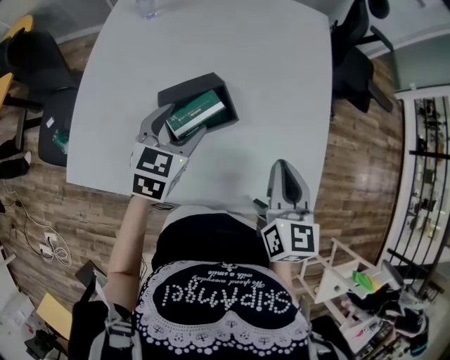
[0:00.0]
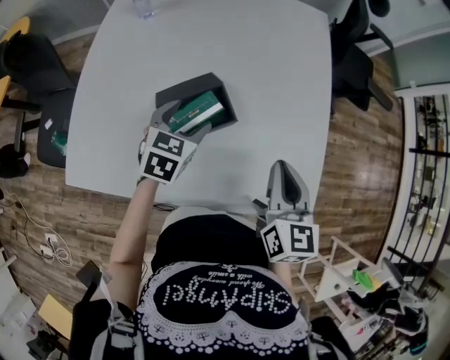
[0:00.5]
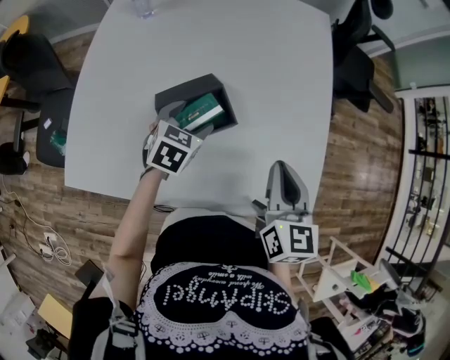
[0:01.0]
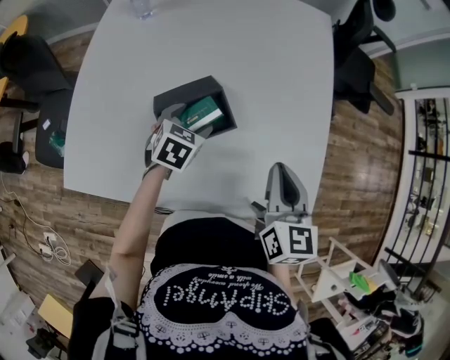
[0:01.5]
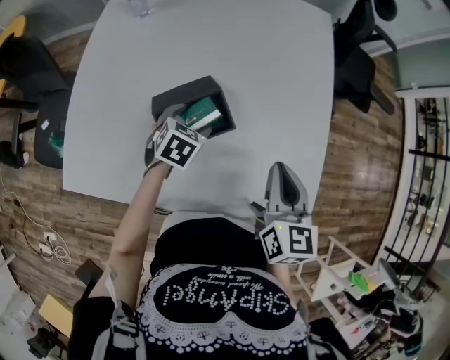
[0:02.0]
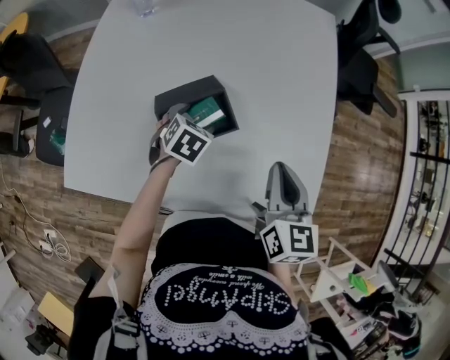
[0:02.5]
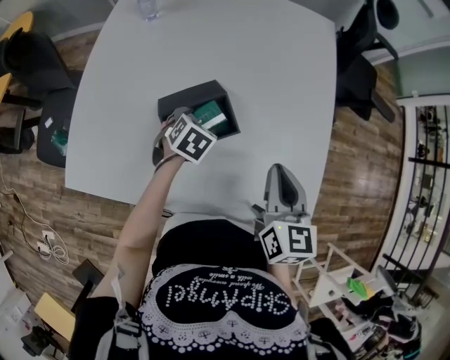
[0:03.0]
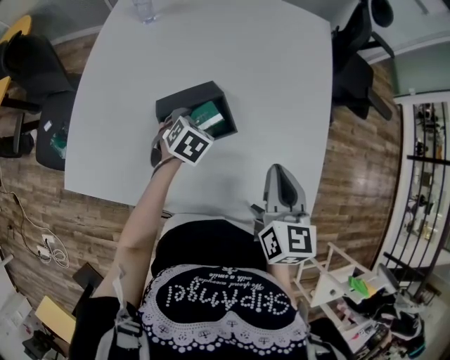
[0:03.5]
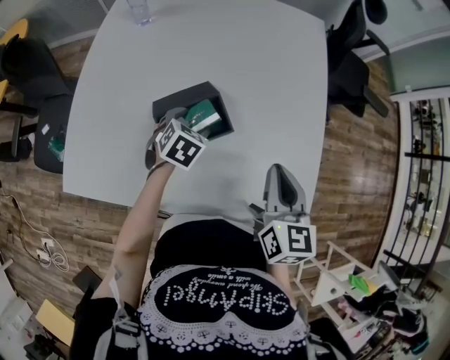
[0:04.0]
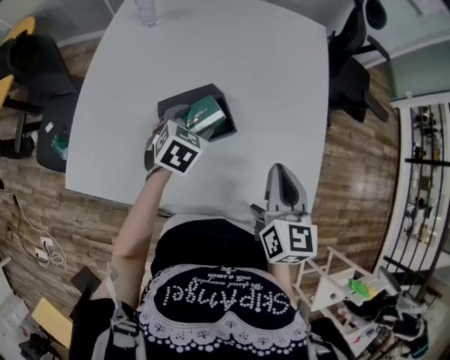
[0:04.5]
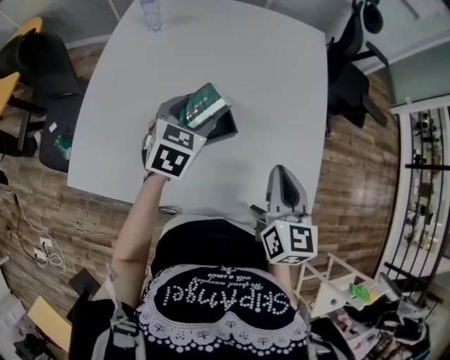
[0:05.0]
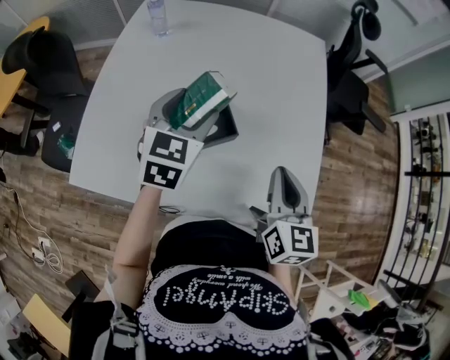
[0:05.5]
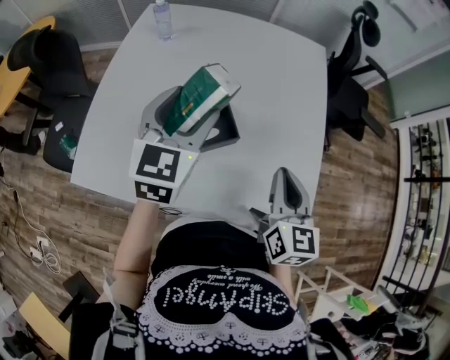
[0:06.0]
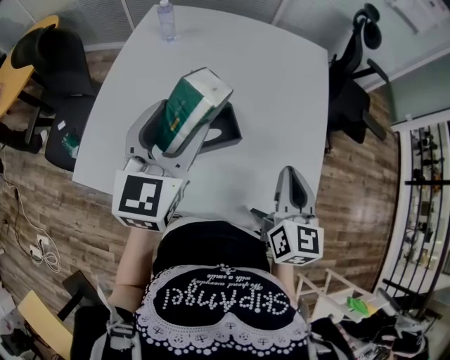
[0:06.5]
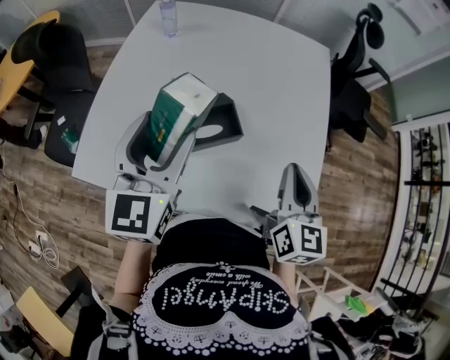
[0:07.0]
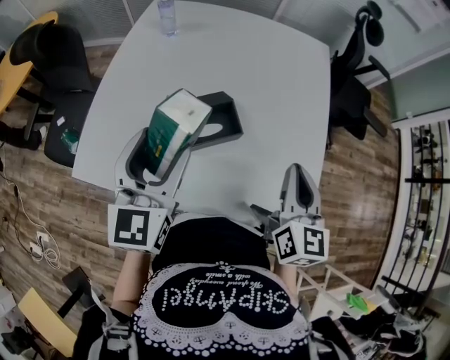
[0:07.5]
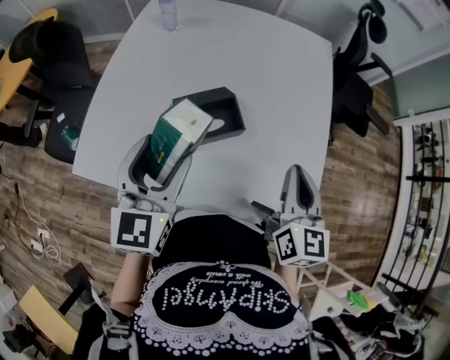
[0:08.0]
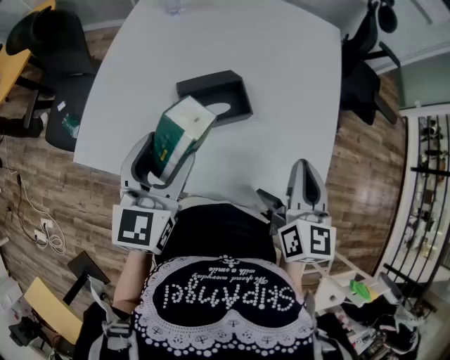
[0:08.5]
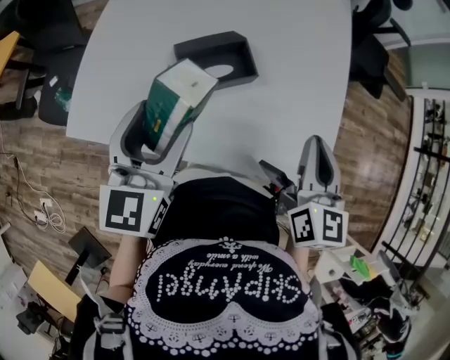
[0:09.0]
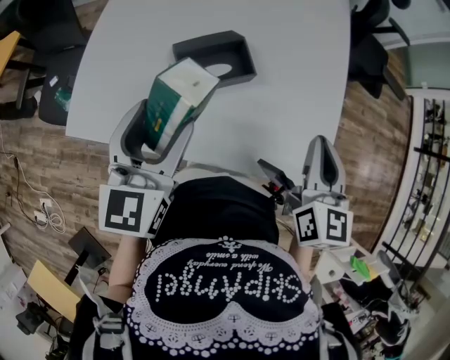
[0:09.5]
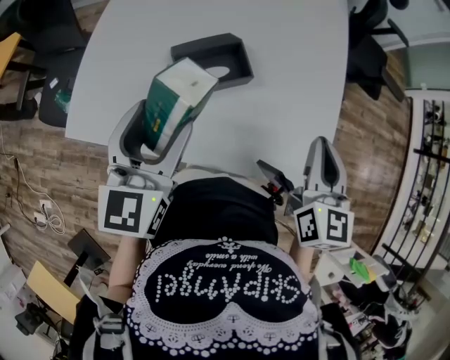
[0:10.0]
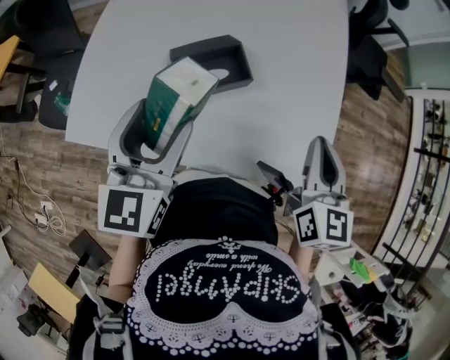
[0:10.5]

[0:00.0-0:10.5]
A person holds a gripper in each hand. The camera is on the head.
0.0 to 2.0 s: The left gripper moves downward, approximately 15 cm, and turns by some 20 degrees.
2.0 to 4.0 s: The grippers stay close to where they were, moving slightly.
4.0 to 6.5 s: The left gripper is displaced upward by about 30 cm, and angles its fingers upward, by roughly 50 degrees.
6.5 to 8.5 s: The left gripper is displaced backward and downward by roughly 10 cm.
8.5 to 10.5 s: There are only small adjustments of the grippers.

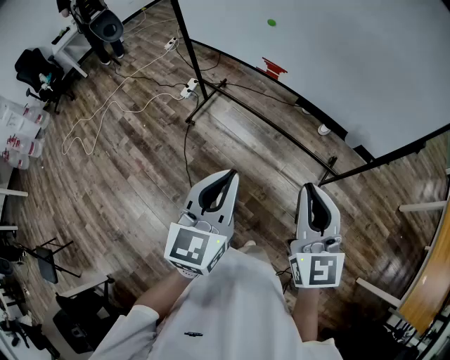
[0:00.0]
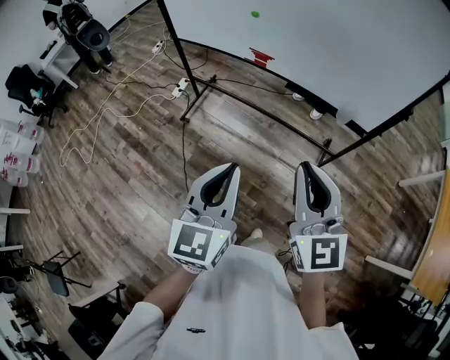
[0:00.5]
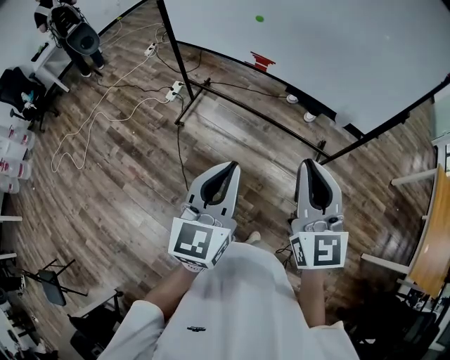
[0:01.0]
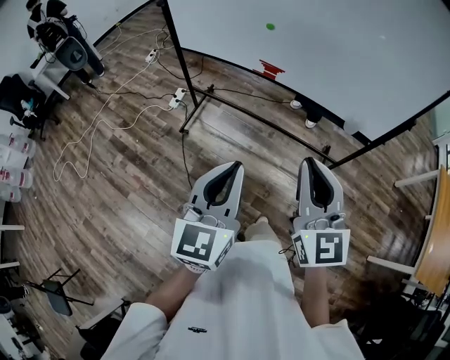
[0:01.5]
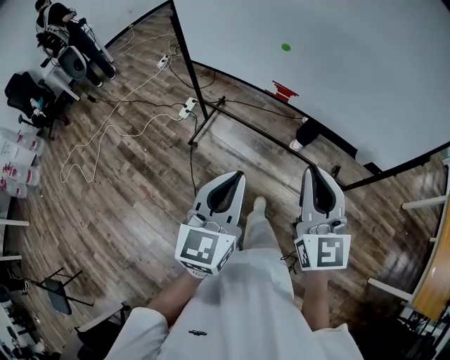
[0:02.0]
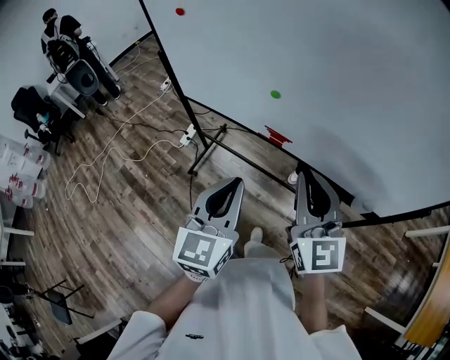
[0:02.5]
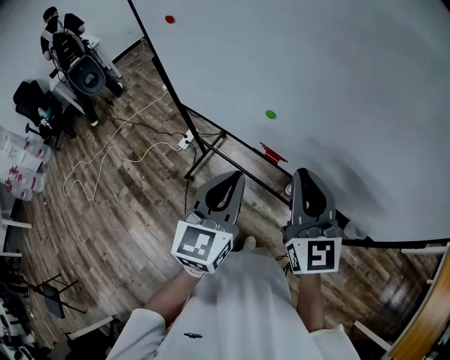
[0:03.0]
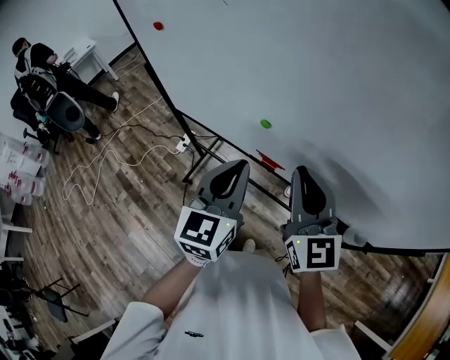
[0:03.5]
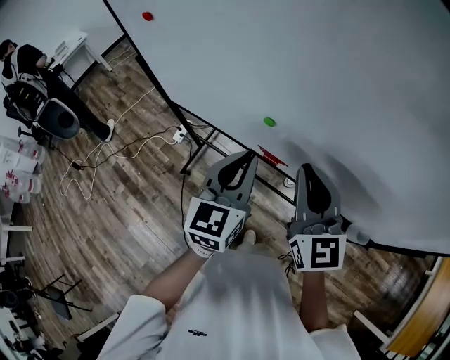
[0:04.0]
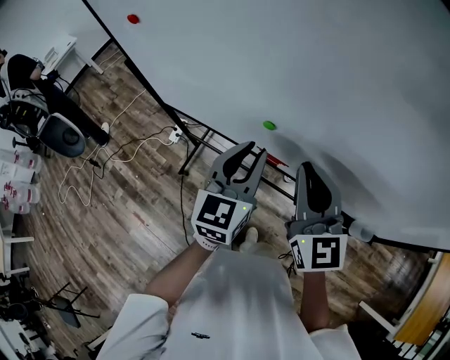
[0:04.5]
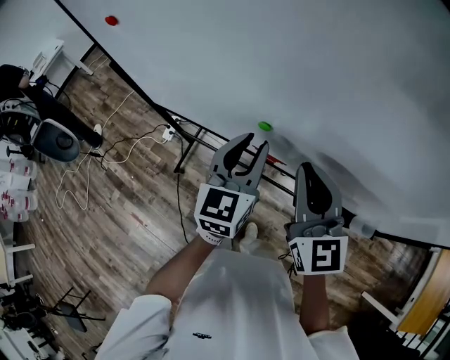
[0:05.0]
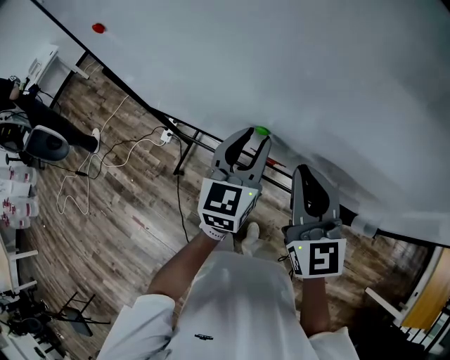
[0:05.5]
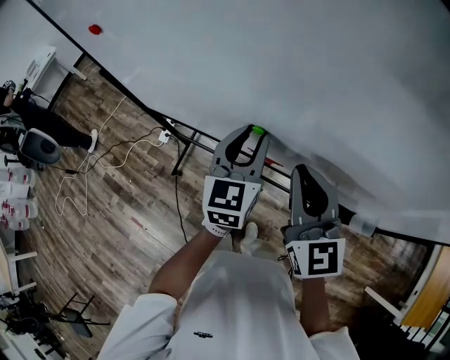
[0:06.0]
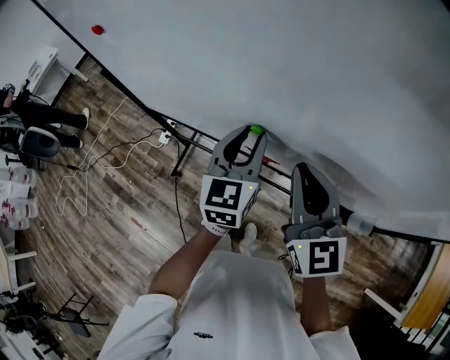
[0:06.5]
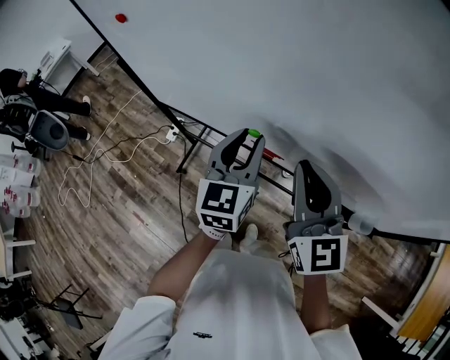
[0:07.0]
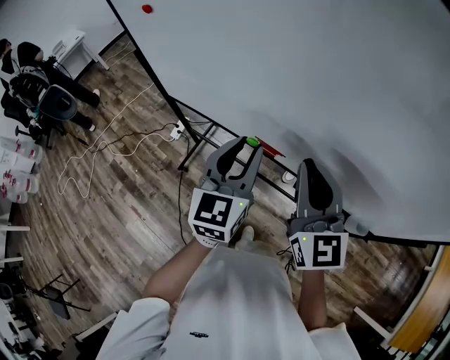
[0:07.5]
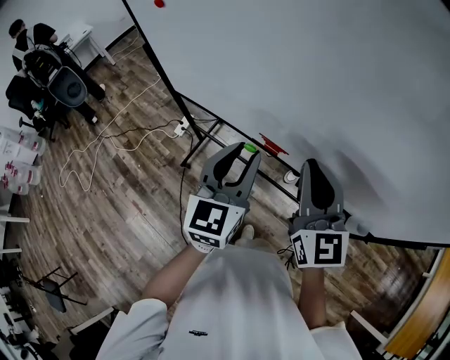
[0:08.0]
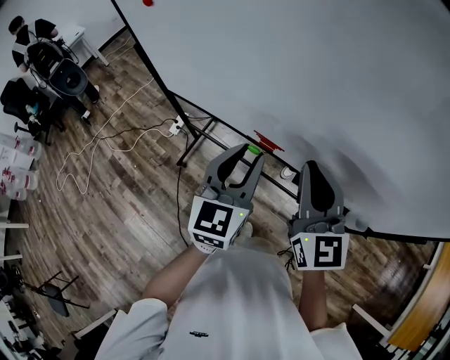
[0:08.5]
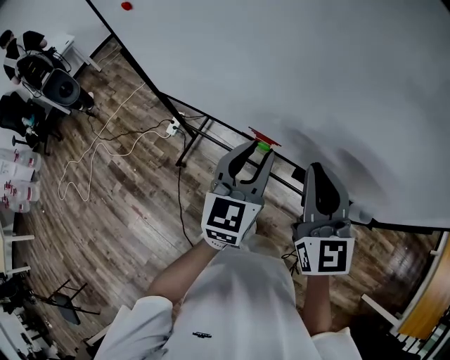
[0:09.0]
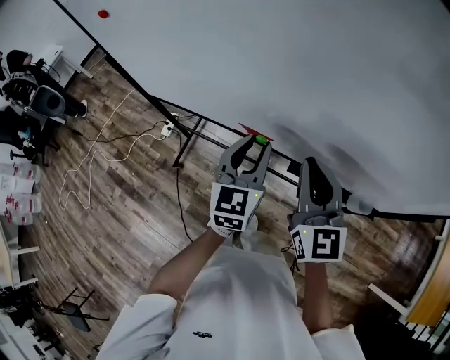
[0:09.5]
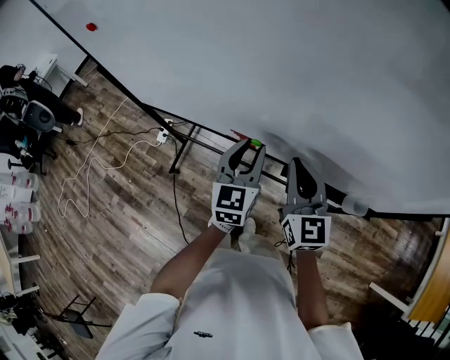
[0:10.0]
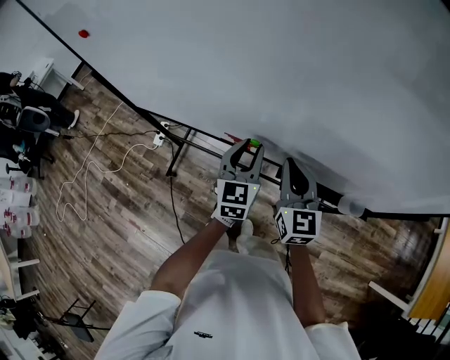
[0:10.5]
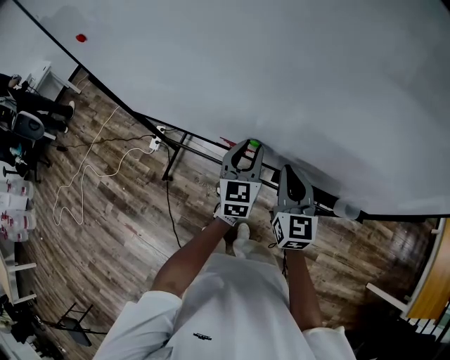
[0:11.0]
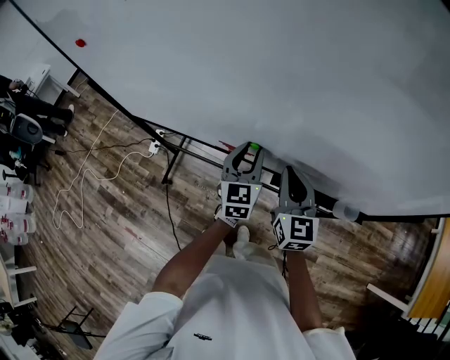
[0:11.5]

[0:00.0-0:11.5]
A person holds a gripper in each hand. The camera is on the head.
0.0 to 2.0 s: Both grippers move forward and to the left, about 15 cm.
2.0 to 4.0 s: The grippers both shift forward by some 30 cm.
4.0 to 6.0 s: The left gripper heads forward, covering some 10 cm, and opens its fingers.
6.0 to 7.5 s: The left gripper moves backward, roughly 10 cm, while the right gripper travels backward by roughly 5 cm.
7.5 to 9.5 s: The two grippers go about 10 cm downward and to the right.
9.5 to 11.5 s: The right gripper goes approximately 10 cm downward, while the left gripper goes some 10 cm downward and forward.

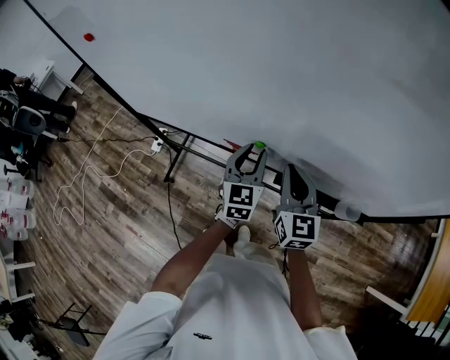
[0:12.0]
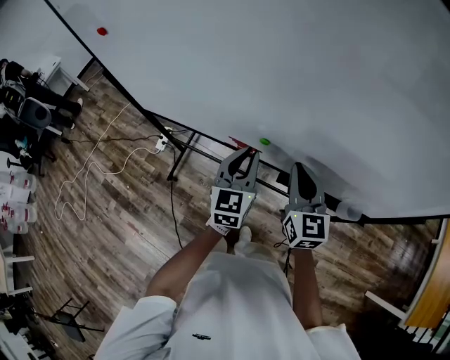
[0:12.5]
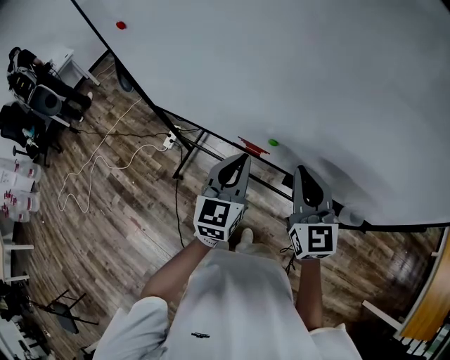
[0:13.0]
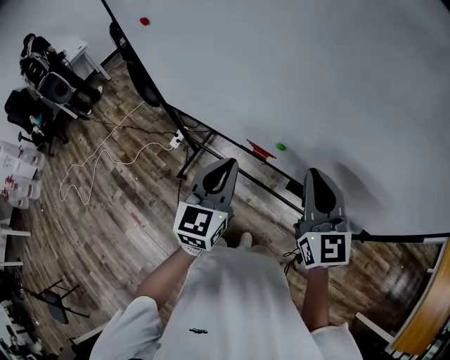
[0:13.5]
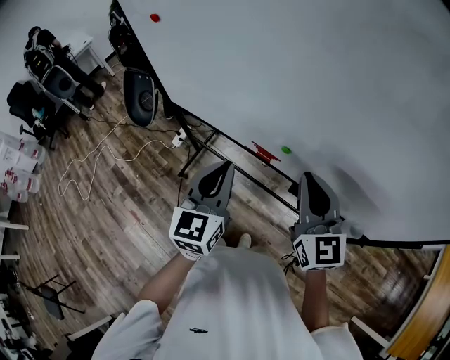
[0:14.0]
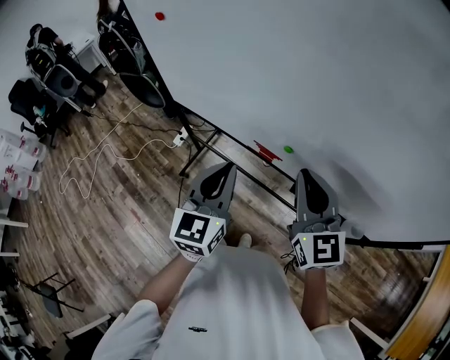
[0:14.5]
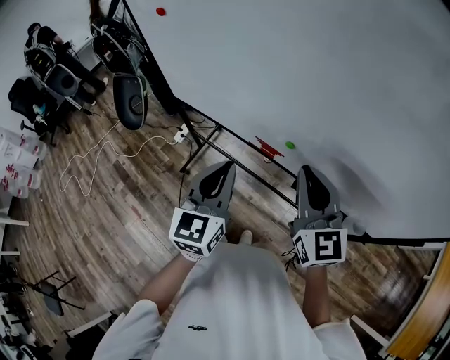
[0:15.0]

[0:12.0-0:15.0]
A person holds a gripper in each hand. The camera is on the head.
12.0 to 13.5 s: The right gripper is displaced upward and backward by about 15 cm, while the left gripper travels upward, to the left and backward by about 20 cm, and closes.
13.5 to 15.0 s: The grippers stay close to where they were, moving slightly.

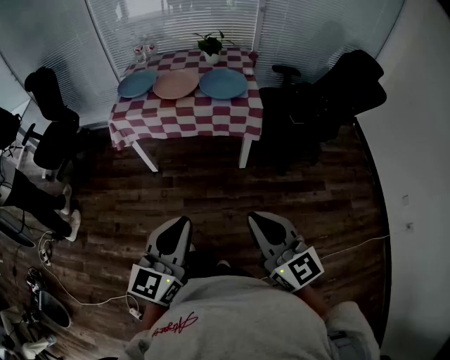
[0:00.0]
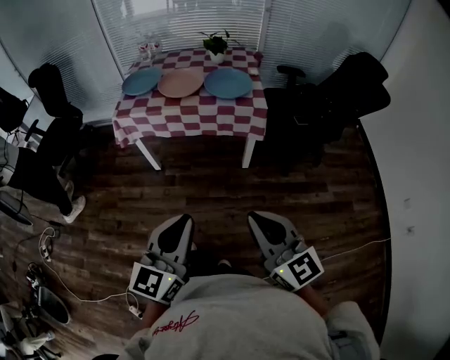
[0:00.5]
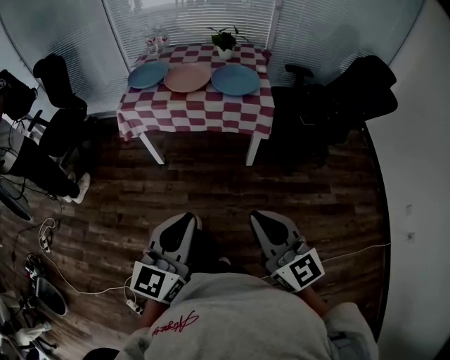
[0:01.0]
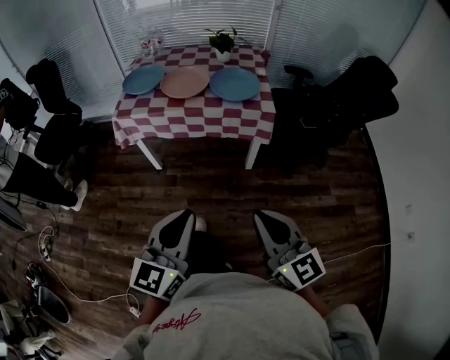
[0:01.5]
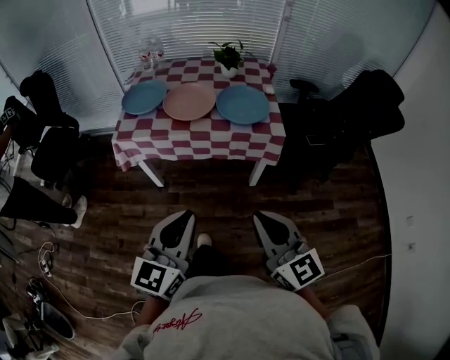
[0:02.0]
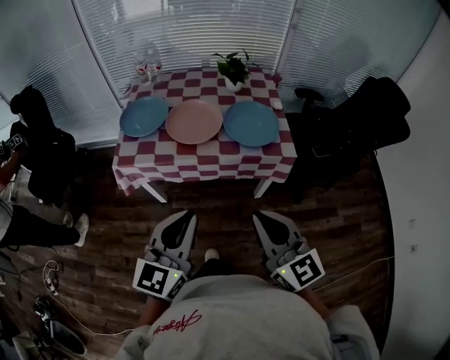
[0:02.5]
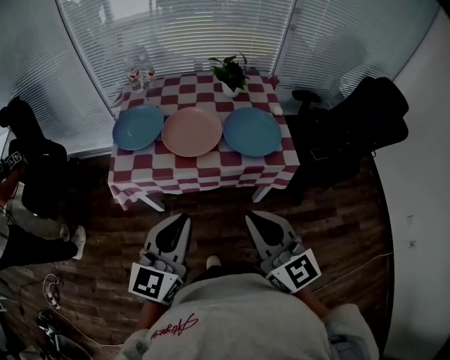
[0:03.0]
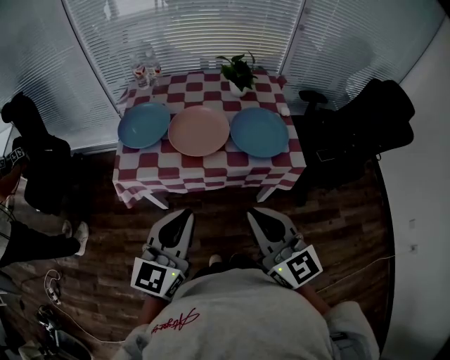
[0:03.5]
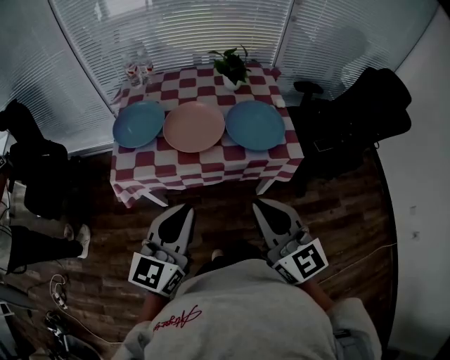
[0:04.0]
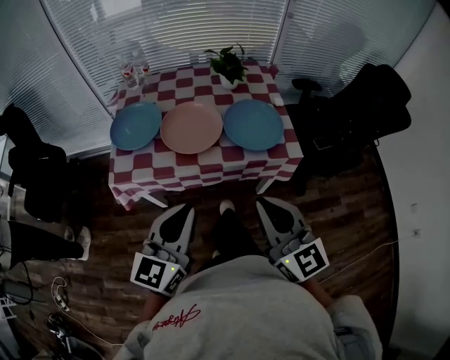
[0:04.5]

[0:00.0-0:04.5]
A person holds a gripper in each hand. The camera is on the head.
0.0 to 2.0 s: The grippers both shift forward by roughly 20 cm.
2.0 to 4.5 s: The grippers both shift forward by roughly 20 cm.
